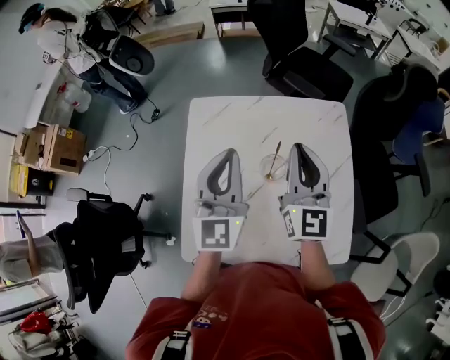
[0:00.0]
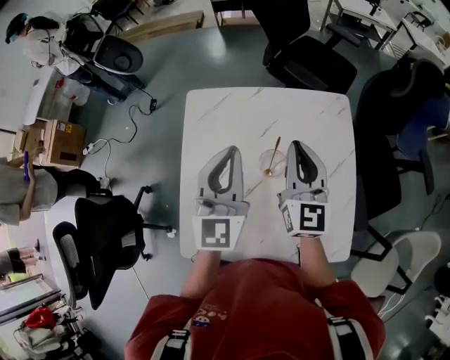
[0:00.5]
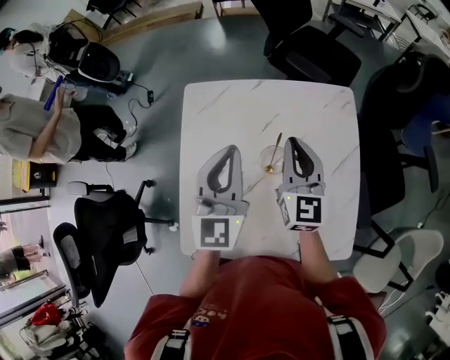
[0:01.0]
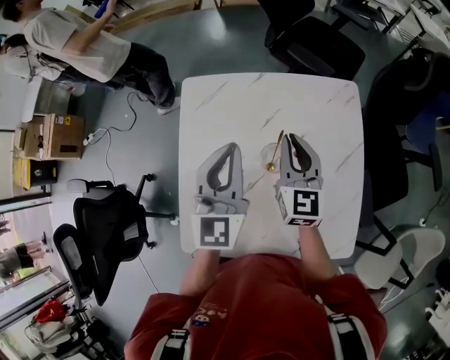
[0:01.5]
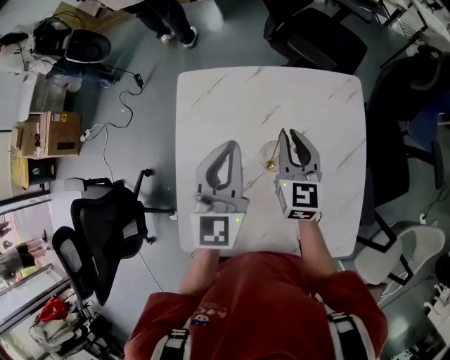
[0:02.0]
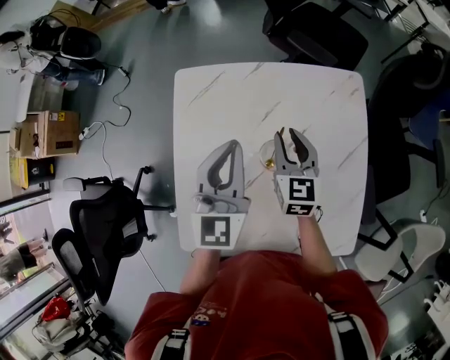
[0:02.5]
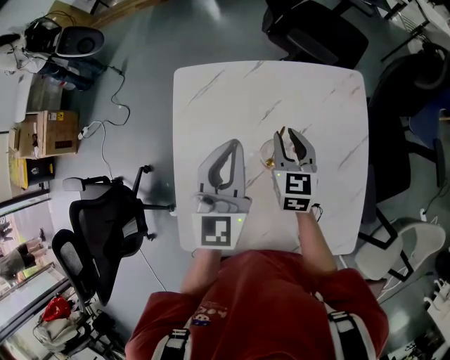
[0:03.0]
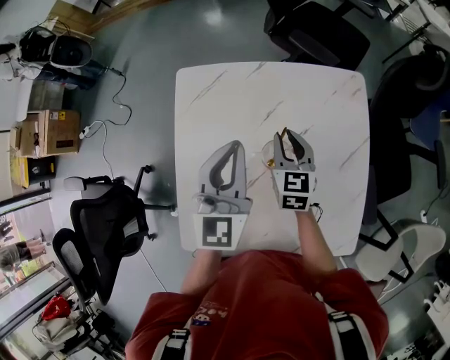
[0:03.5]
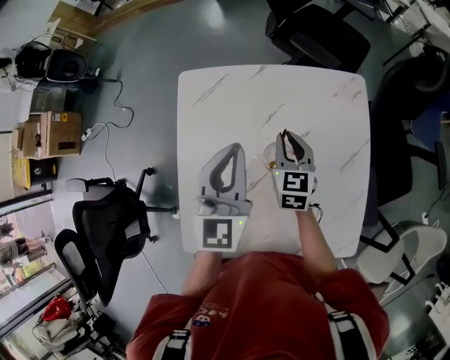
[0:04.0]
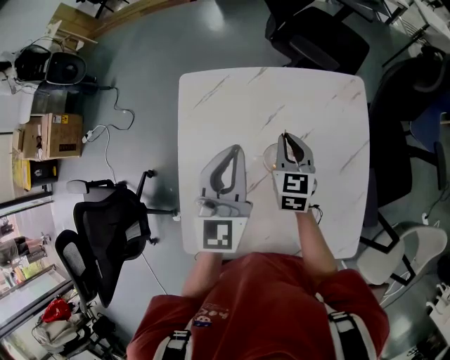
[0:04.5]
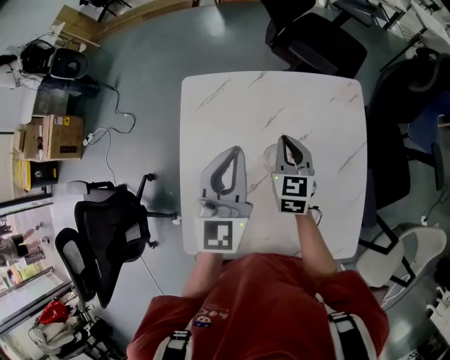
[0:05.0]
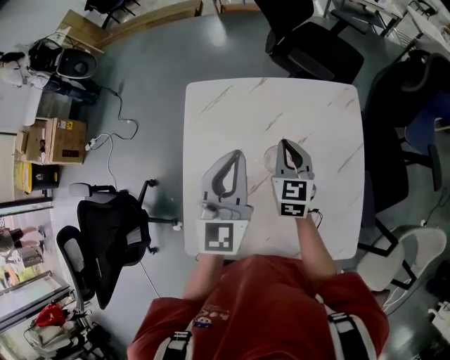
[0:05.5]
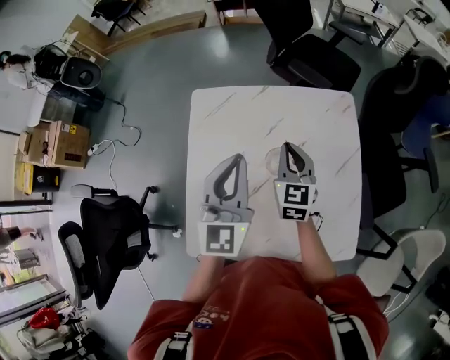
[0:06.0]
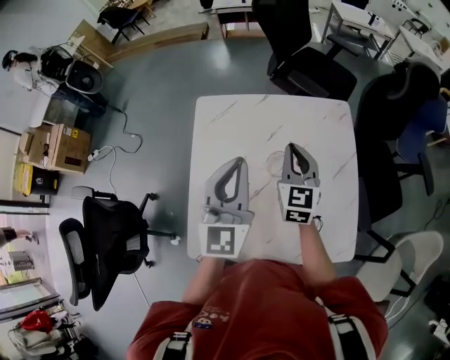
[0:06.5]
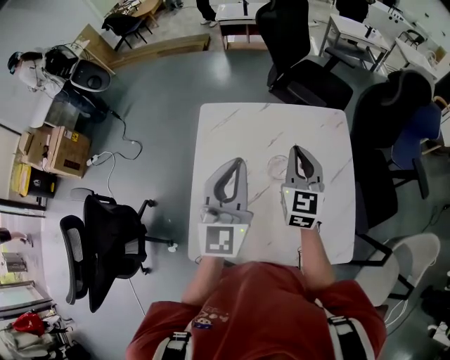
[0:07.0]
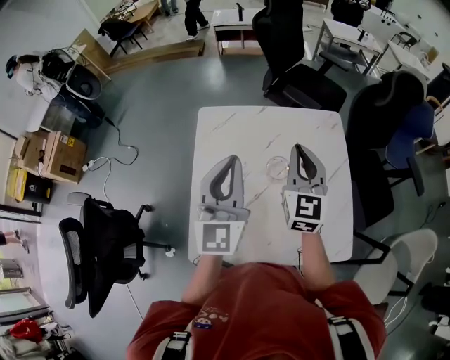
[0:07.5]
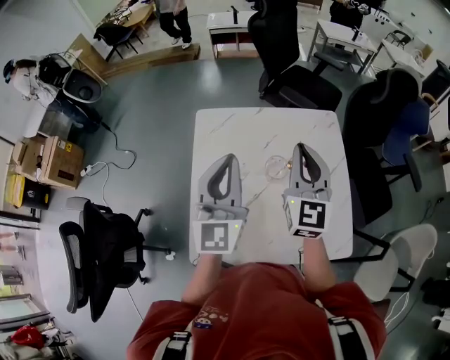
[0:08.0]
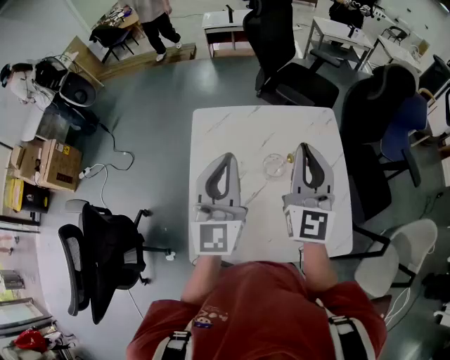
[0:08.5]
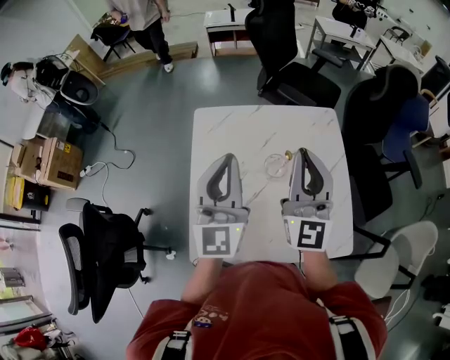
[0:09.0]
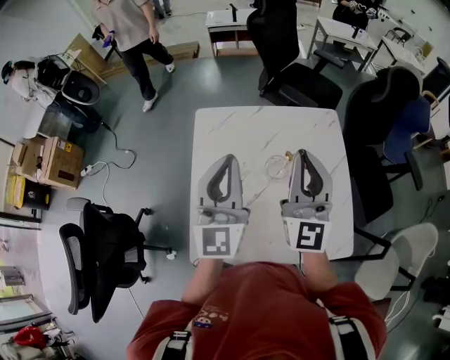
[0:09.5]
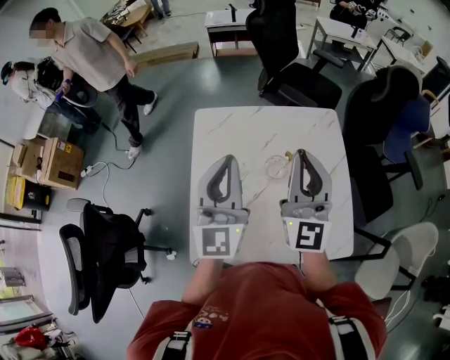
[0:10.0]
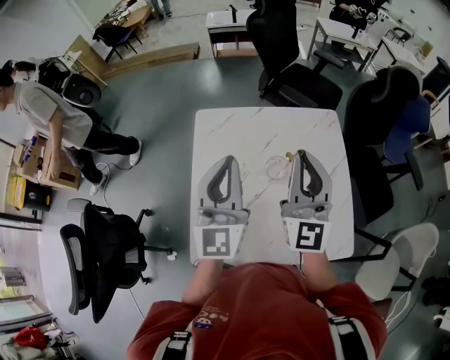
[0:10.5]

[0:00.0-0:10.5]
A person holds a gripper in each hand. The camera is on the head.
0:00.0 to 0:02.0: The left gripper heads downward, covering approximately 10 cm; the right gripper moves downward and forward, about 15 cm, and rotates some 20 degrees.
0:02.0 to 0:04.0: The right gripper travels downward by about 5 cm.
0:04.0 to 0:06.5: Both grippers travel together upward and backward, about 10 cm.
0:06.5 to 0:08.5: The right gripper shifts some 20 cm upward and backward, and turns by about 30 degrees. The left gripper moves approximately 5 cm.
0:08.5 to 0:10.5: The grippers stay close to where they were, moving slightly.

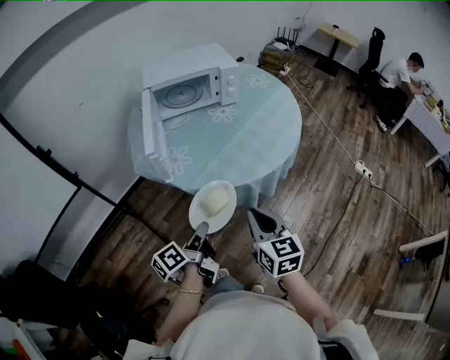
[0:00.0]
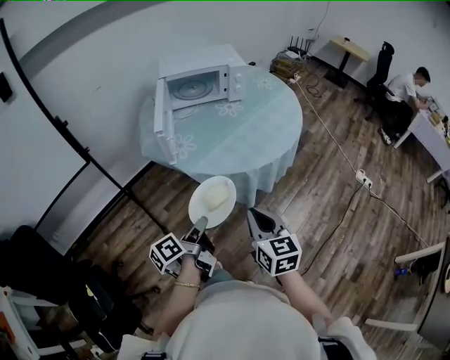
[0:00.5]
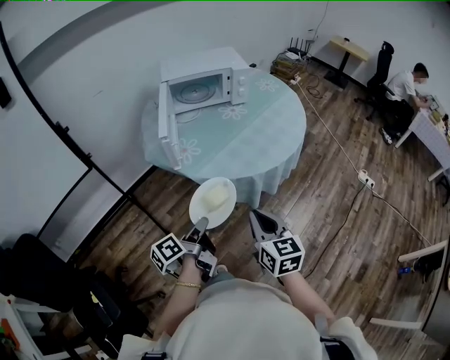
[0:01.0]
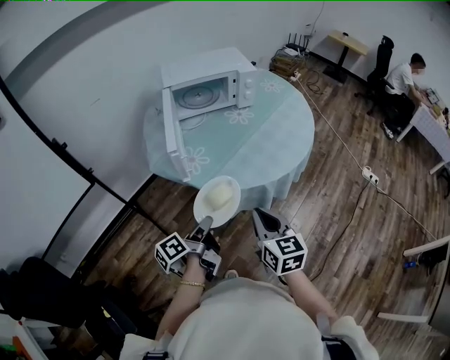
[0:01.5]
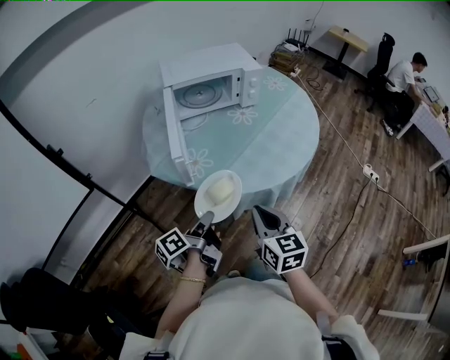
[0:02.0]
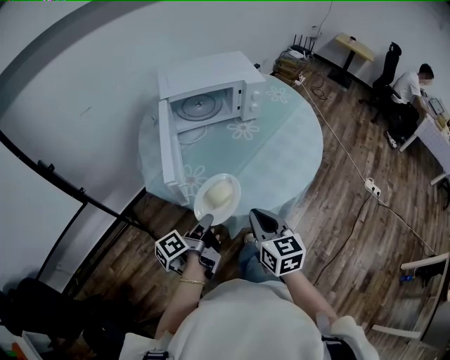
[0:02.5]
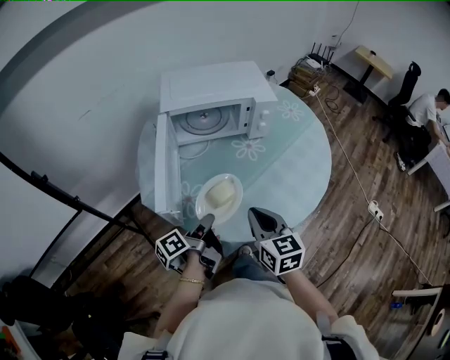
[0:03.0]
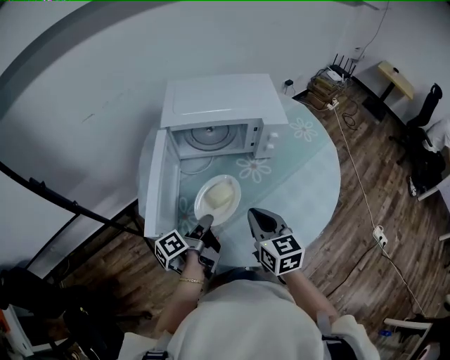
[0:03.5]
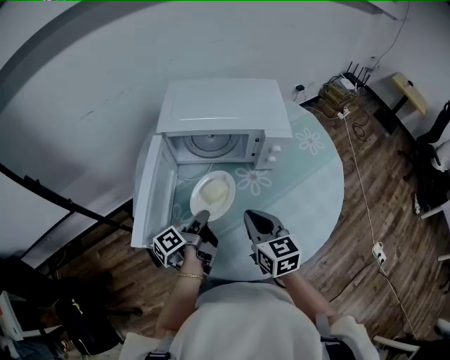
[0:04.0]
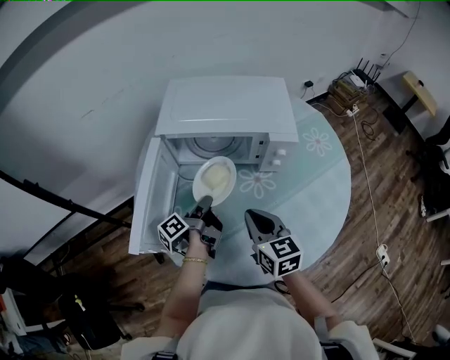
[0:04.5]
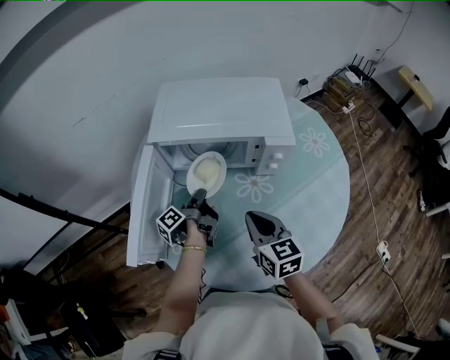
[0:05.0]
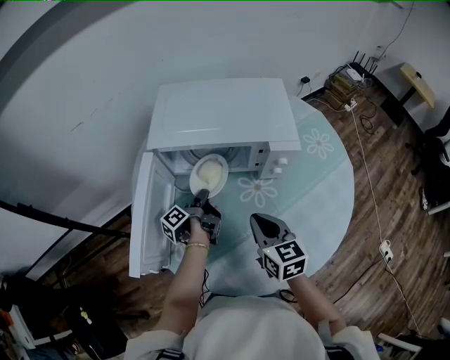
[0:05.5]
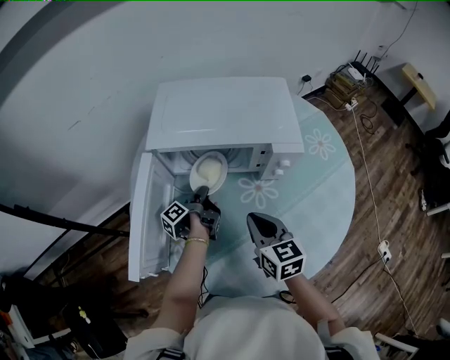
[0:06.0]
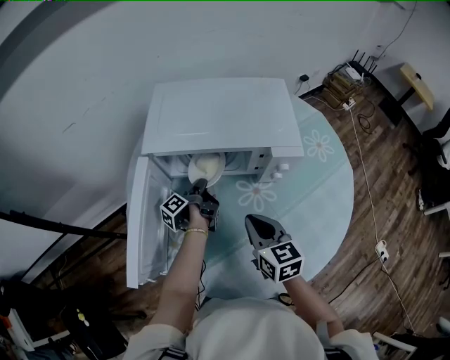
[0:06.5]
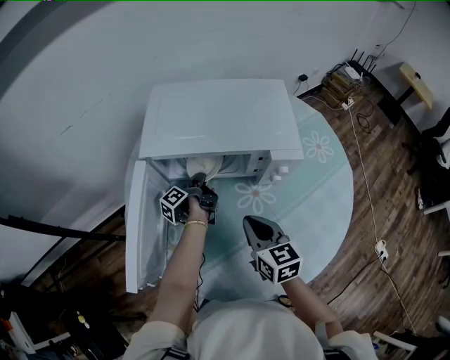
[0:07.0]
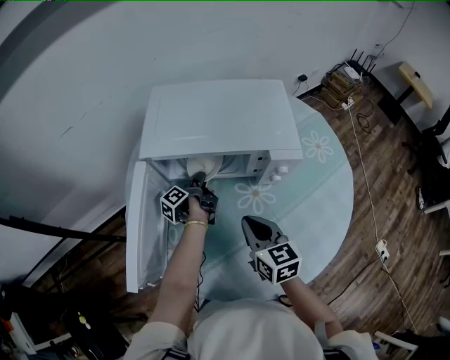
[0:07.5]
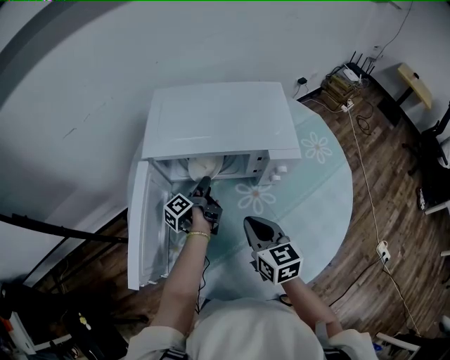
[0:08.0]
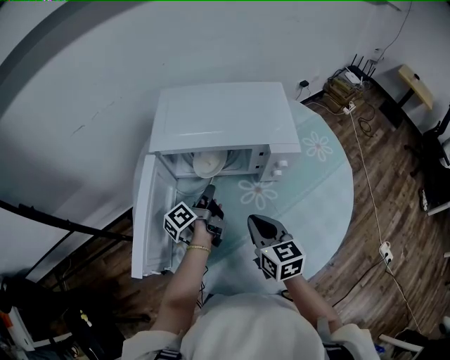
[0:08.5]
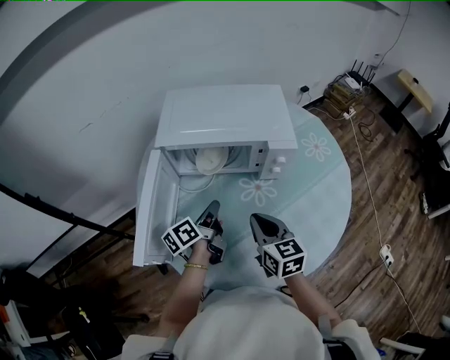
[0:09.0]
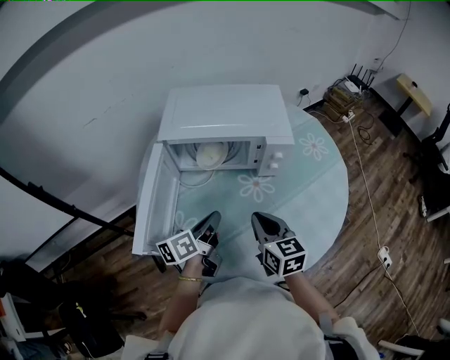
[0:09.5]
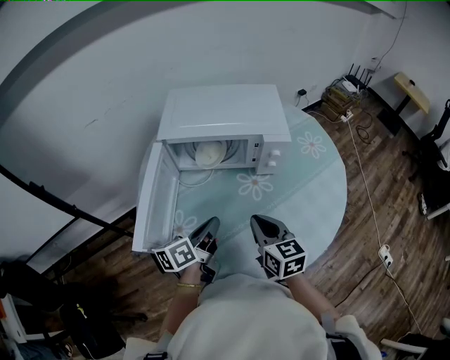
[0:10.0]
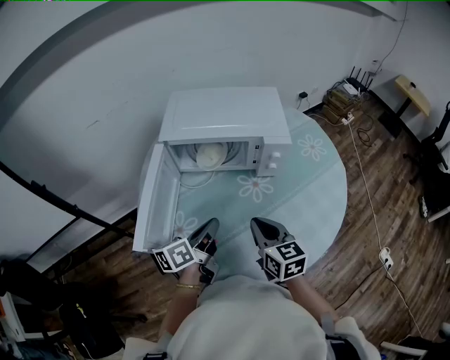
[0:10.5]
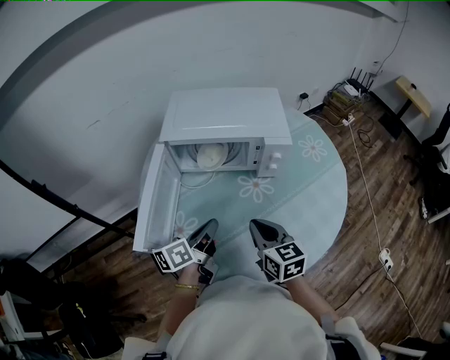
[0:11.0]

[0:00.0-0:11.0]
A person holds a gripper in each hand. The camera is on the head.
0:00.0 to 0:02.0: The right gripper ends up roughly 10 cm from where it was.
0:02.0 to 0:03.5: The right gripper ends up some 30 cm from where it was.
0:03.5 to 0:05.5: The right gripper shifts by about 15 cm.
0:07.5 to 0:09.0: The right gripper changes place by about 5 cm.
0:09.0 to 0:11.0: The right gripper moves roughly 5 cm.

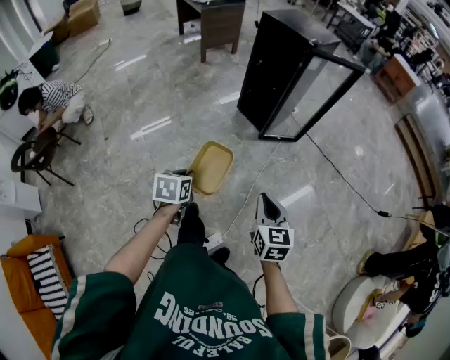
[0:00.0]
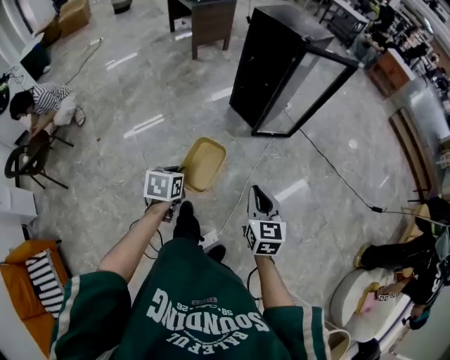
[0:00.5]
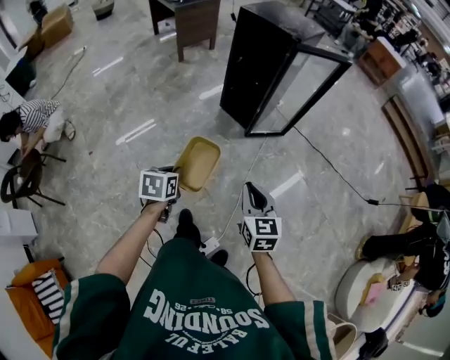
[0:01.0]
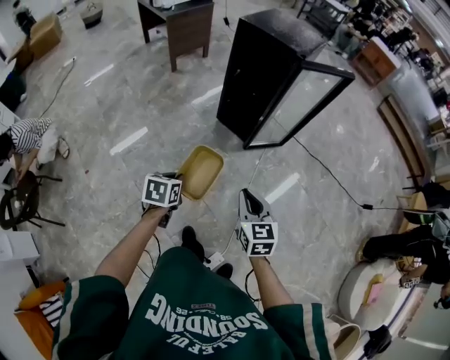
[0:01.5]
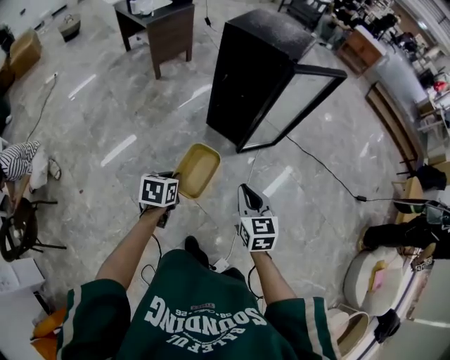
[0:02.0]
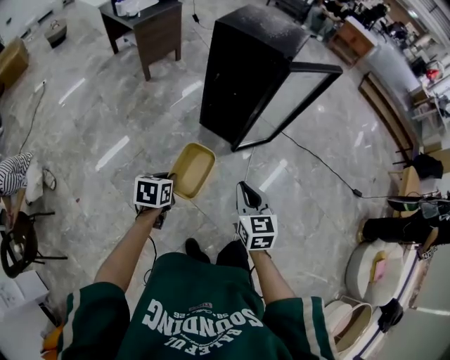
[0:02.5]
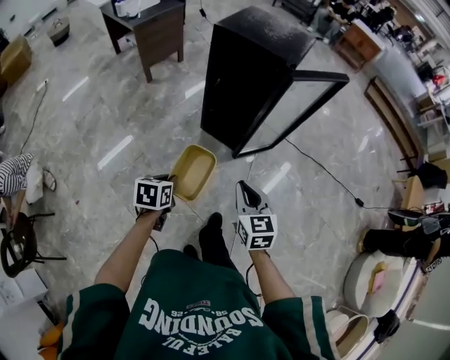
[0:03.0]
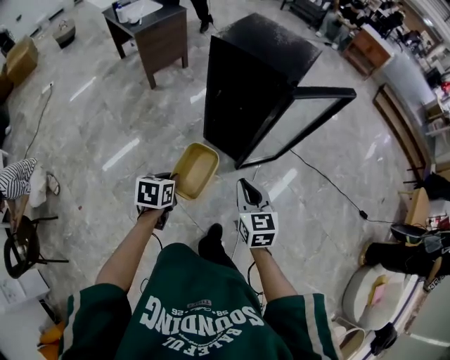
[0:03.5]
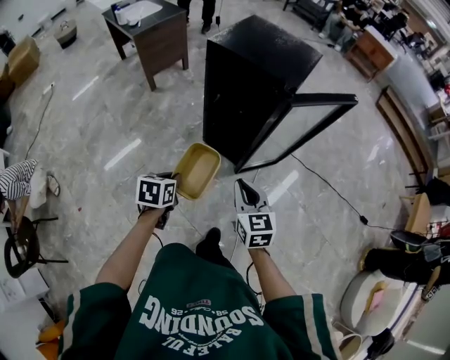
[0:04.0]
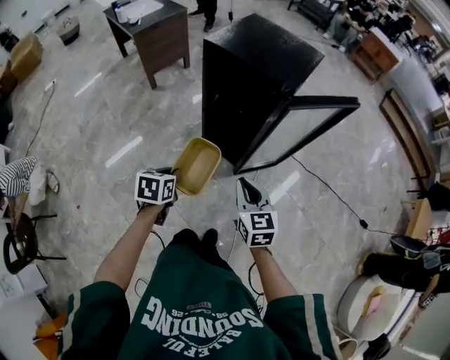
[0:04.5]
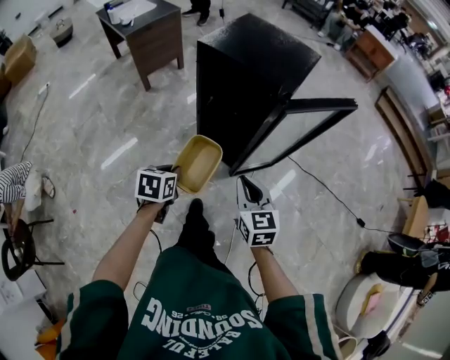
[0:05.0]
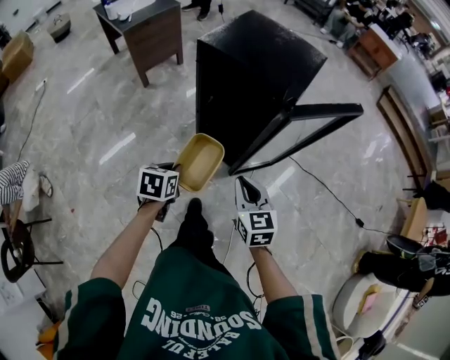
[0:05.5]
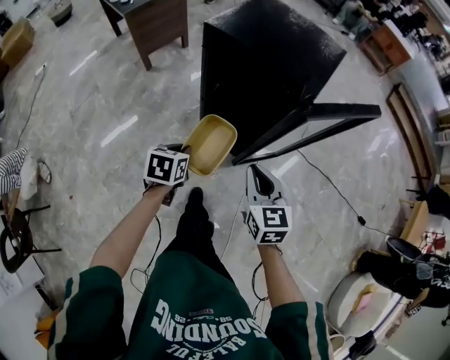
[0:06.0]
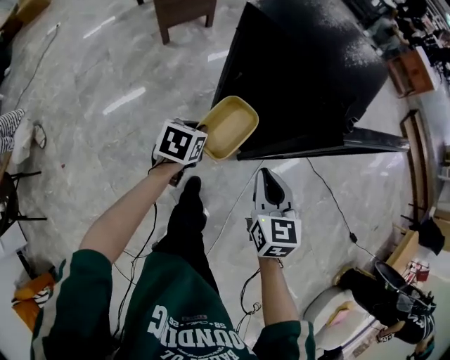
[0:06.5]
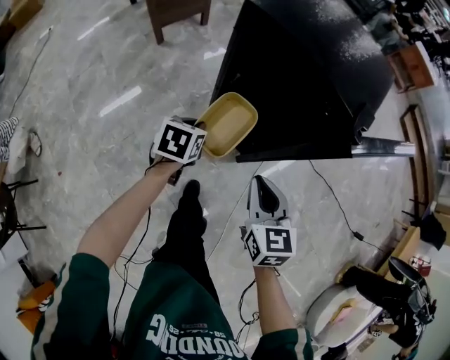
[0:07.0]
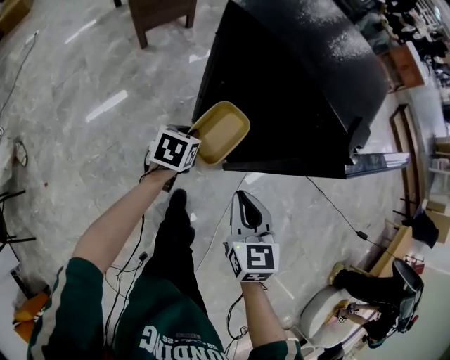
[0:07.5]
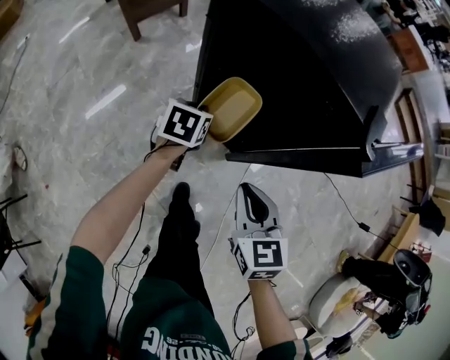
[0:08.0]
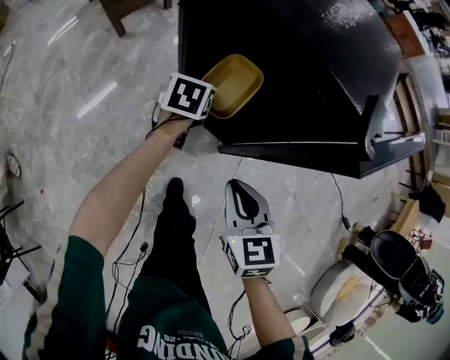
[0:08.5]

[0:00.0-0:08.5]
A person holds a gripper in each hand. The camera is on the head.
0:00.0 to 0:02.0: The right gripper goes some 25 cm forward and to the left; the left gripper is displaced forward by about 25 cm.
0:02.0 to 0:04.0: The grippers both shift forward by some 20 cm.
0:04.0 to 0:06.5: The two grippers go about 20 cm forward.
0:06.5 to 0:08.5: The right gripper is displaced downward by about 10 cm. Meanwhile the left gripper shifts roughly 20 cm forward and downward.
